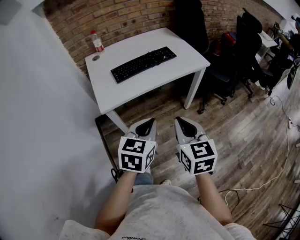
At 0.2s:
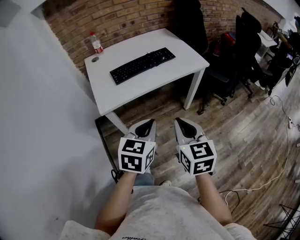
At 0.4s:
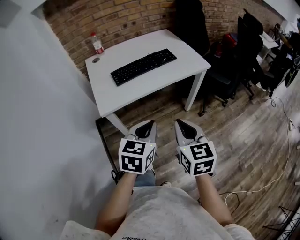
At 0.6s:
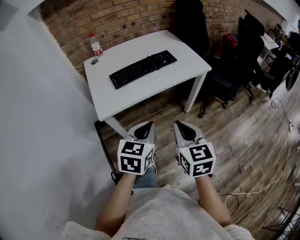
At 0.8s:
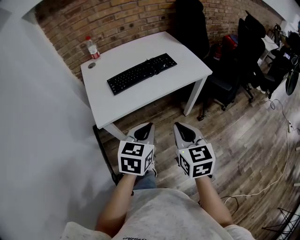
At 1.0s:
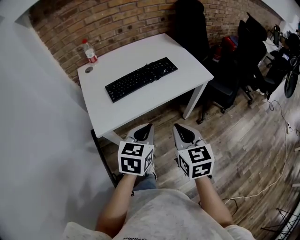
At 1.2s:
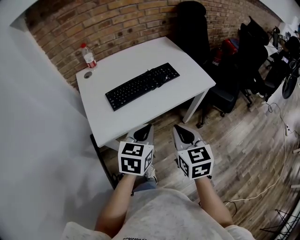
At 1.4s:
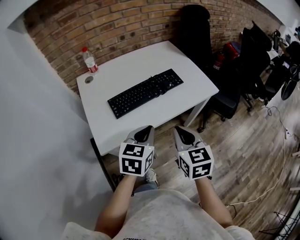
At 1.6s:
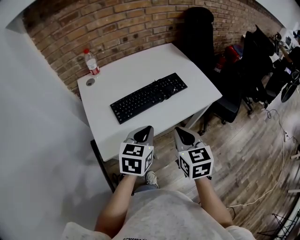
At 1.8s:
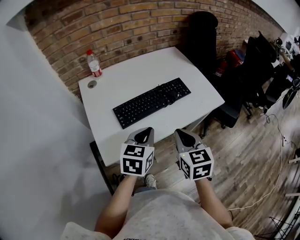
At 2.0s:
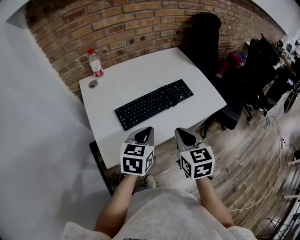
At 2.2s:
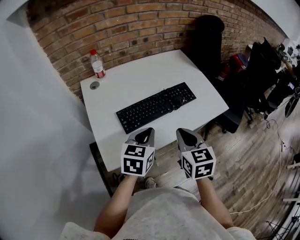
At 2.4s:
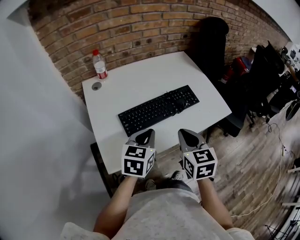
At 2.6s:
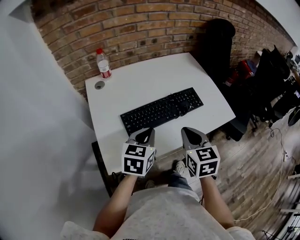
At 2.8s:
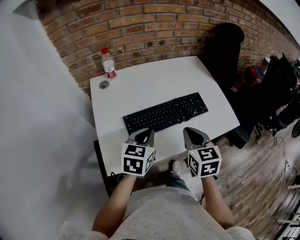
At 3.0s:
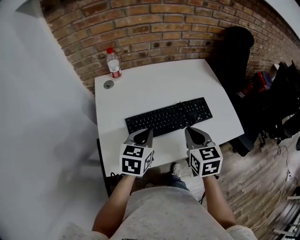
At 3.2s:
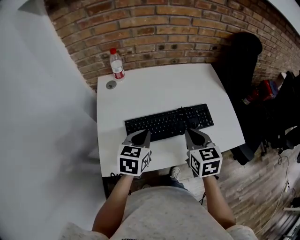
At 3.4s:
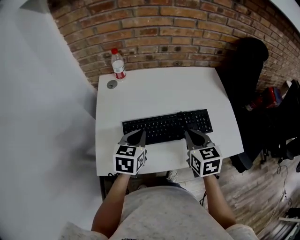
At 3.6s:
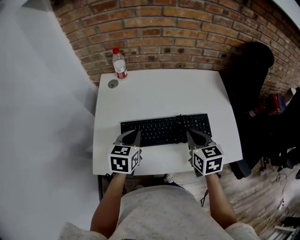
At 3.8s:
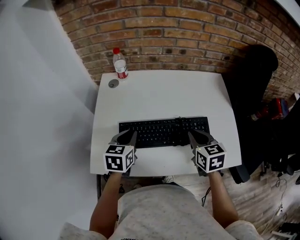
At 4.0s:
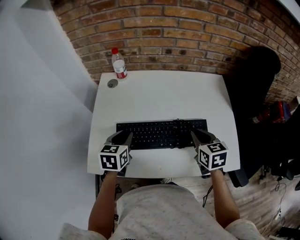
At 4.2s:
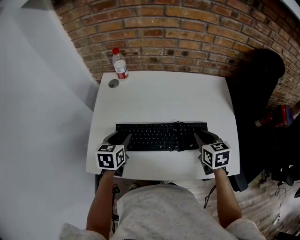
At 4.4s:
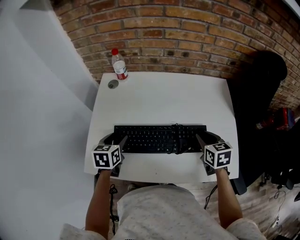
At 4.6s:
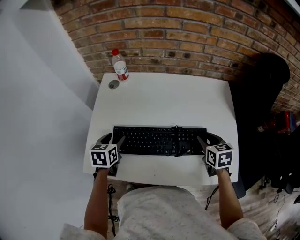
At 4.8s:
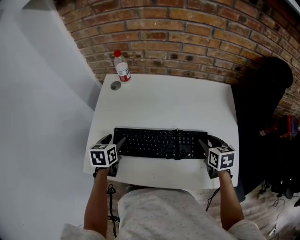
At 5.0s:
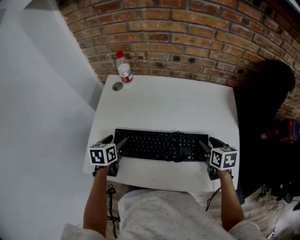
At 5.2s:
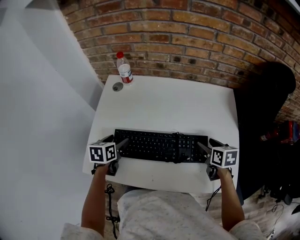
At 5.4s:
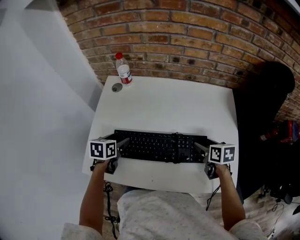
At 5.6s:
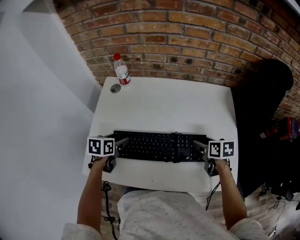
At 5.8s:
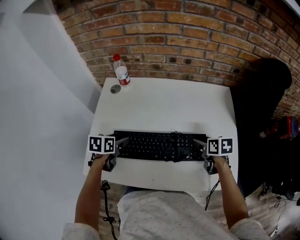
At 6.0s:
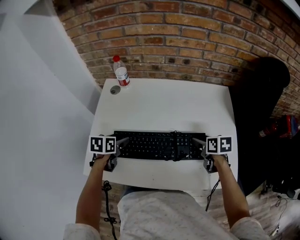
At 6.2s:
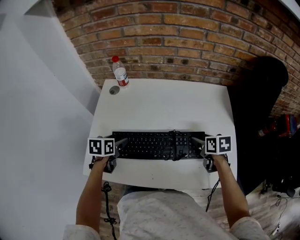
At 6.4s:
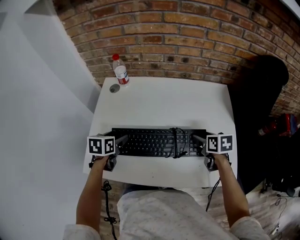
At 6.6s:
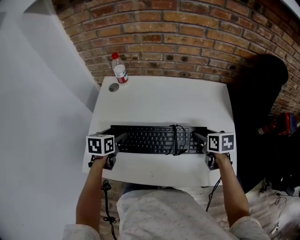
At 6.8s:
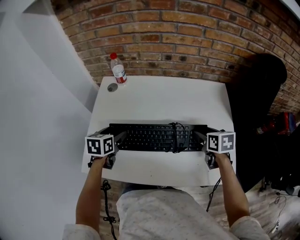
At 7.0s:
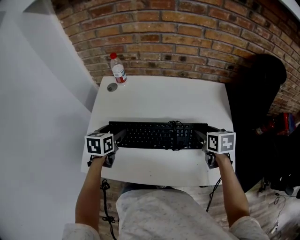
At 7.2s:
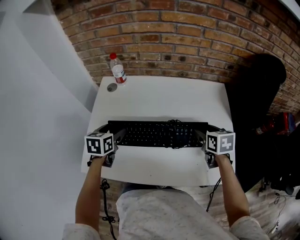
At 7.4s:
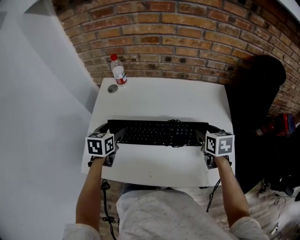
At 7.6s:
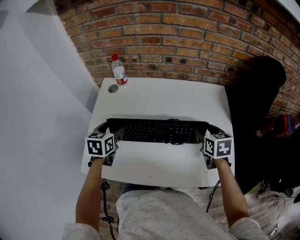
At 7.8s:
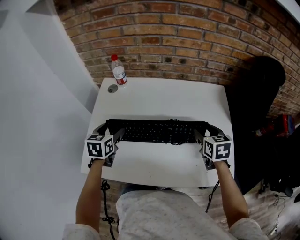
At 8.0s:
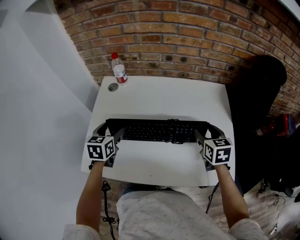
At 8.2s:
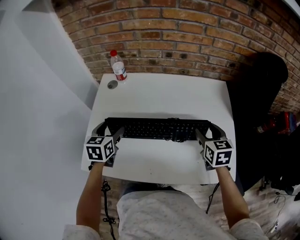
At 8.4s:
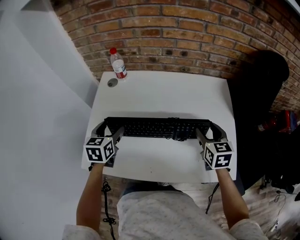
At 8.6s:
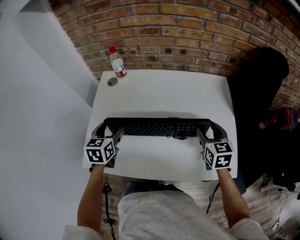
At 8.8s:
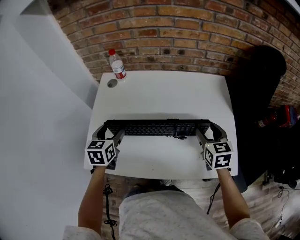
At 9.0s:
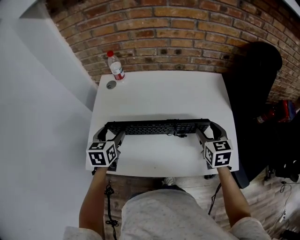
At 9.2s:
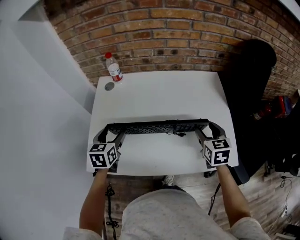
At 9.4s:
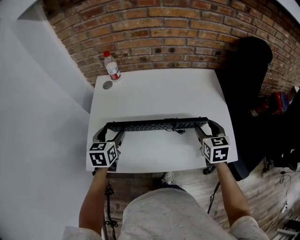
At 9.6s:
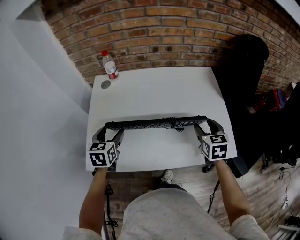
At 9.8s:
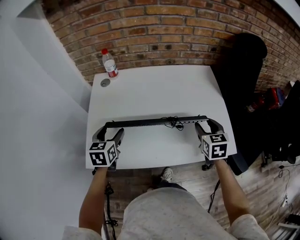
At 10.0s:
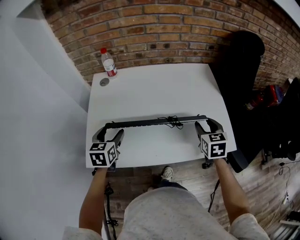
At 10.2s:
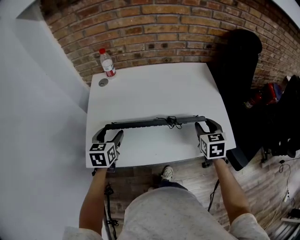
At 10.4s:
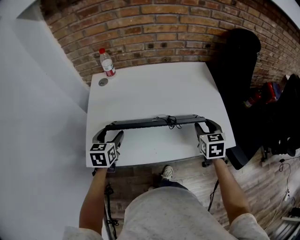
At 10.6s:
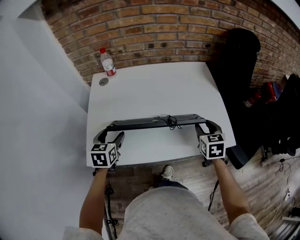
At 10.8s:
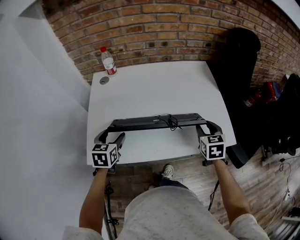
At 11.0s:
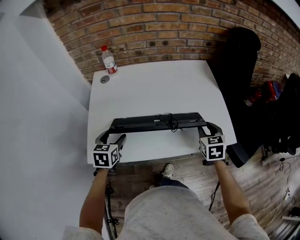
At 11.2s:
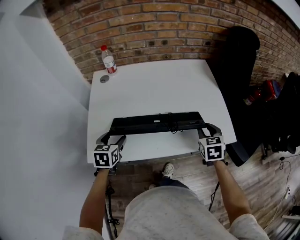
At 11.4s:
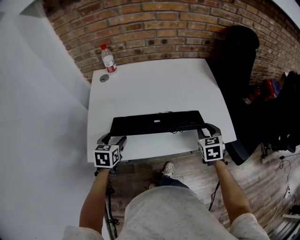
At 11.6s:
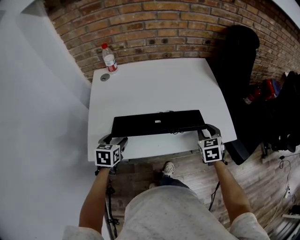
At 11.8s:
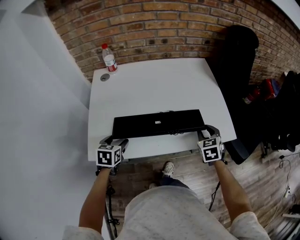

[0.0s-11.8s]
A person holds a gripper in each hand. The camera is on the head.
0.0s to 1.4s: The grippers both shift forward by roughly 20 cm.
1.4s to 3.0s: The right gripper shifts about 20 cm forward, while the left gripper goes some 20 cm forward and to the left.
3.0s to 4.4s: The right gripper travels to the right, forward and downward by roughly 25 cm, and rotates approximately 20 degrees. The left gripper heads downward, forward and to the left, covering approximately 10 cm, turns by about 30 degrees, and opens its fingers.
4.4s to 6.0s: The right gripper changes place by some 5 cm, rotates about 20 degrees, and opens its fingers.
6.0s to 7.4s: The grippers both shift upward by approximately 5 cm.
7.4s to 8.8s: There are only small adjustments of the grippers.
8.8s to 10.4s: Both grippers move backward, some 10 cm.
10.4s to 11.8s: The grippers both shift downward and backward by about 10 cm.

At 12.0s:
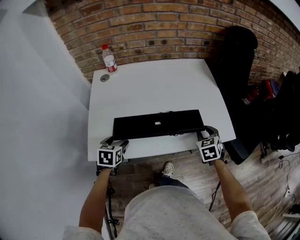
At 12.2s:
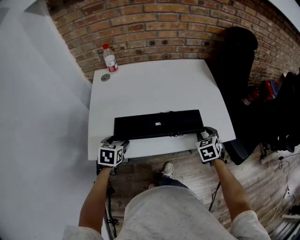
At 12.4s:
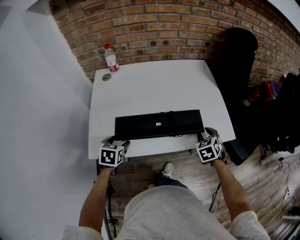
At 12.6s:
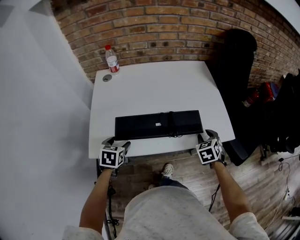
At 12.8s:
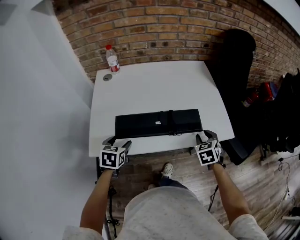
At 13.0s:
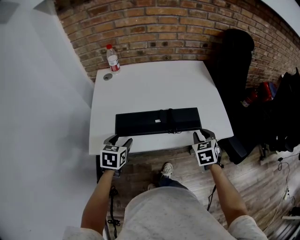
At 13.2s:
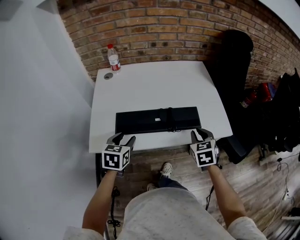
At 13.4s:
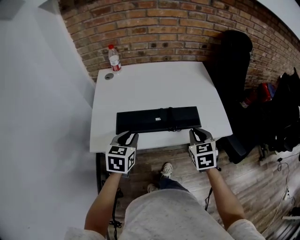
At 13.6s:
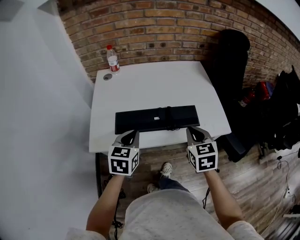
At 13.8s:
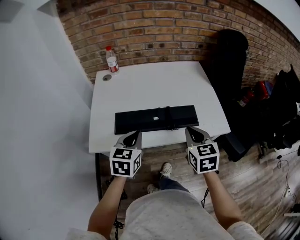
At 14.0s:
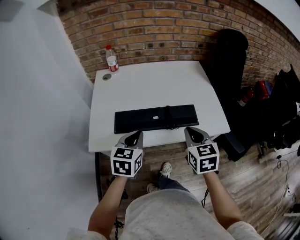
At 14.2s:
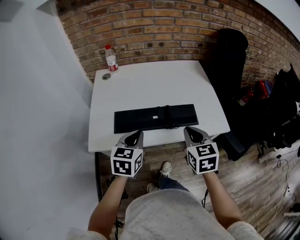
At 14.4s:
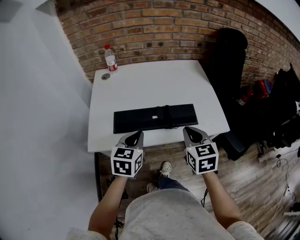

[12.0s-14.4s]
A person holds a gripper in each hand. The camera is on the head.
12.0s to 13.2s: The right gripper moves backward, some 5 cm; the left gripper is displaced upward and to the right by roughly 10 cm.
13.2s to 14.4s: The right gripper shifts some 10 cm upward and to the left. The left gripper heads to the right and upward, covering about 10 cm, and closes its fingers.

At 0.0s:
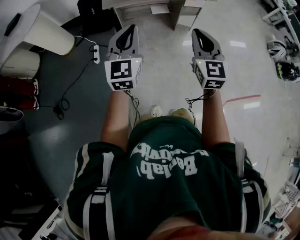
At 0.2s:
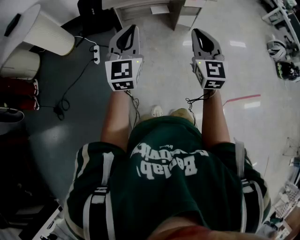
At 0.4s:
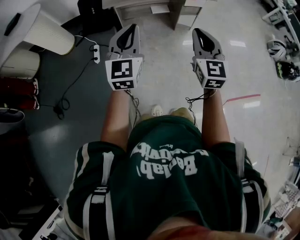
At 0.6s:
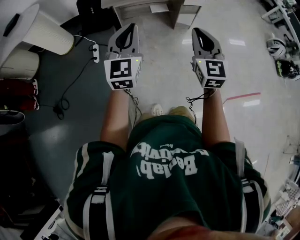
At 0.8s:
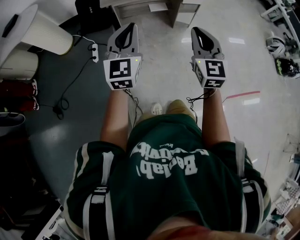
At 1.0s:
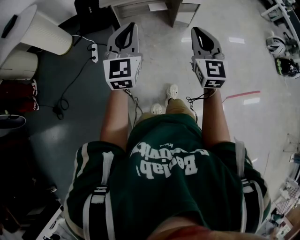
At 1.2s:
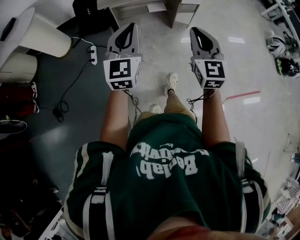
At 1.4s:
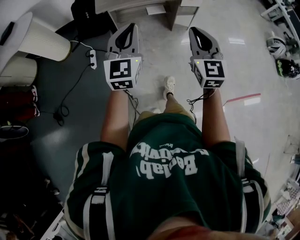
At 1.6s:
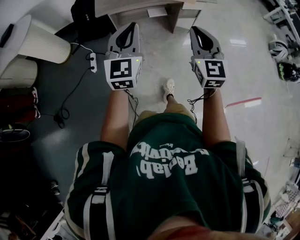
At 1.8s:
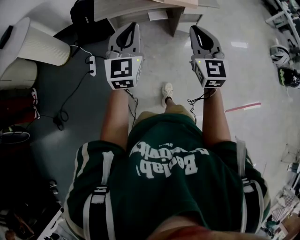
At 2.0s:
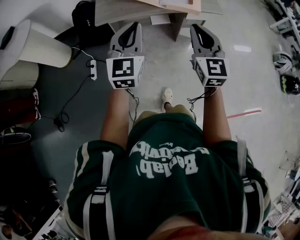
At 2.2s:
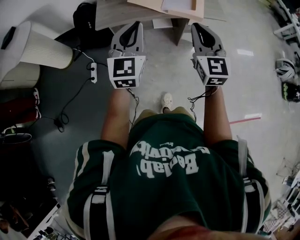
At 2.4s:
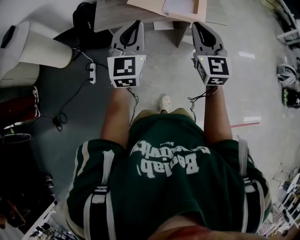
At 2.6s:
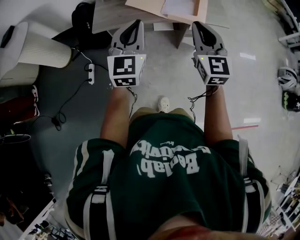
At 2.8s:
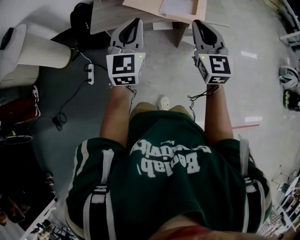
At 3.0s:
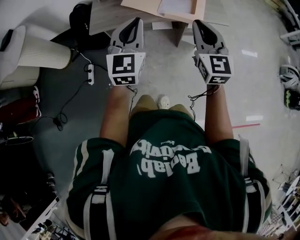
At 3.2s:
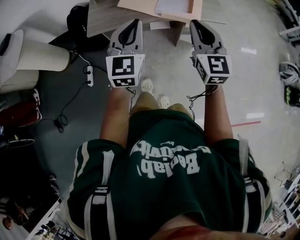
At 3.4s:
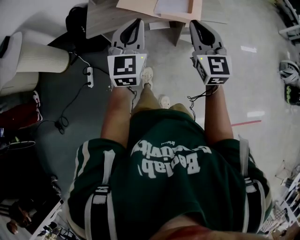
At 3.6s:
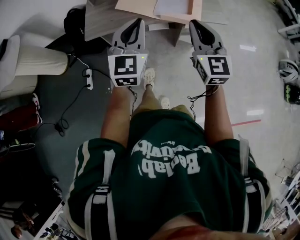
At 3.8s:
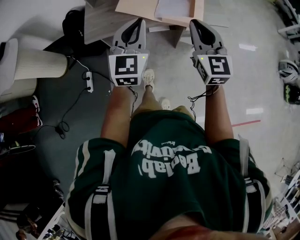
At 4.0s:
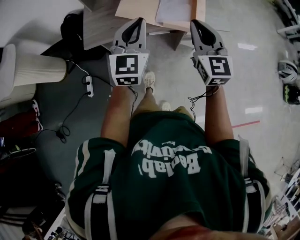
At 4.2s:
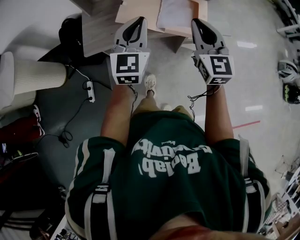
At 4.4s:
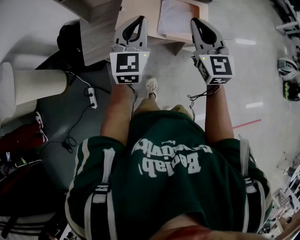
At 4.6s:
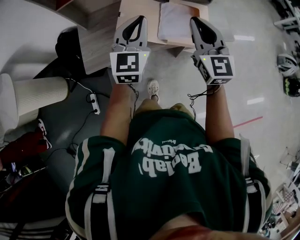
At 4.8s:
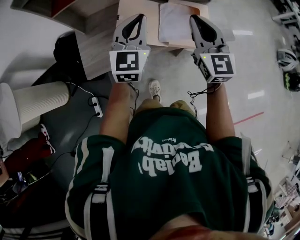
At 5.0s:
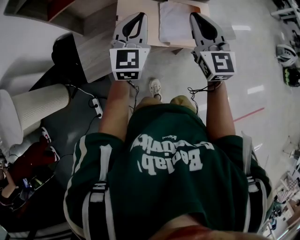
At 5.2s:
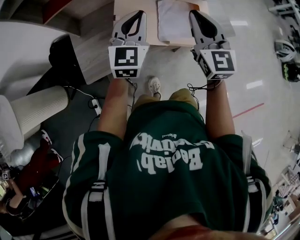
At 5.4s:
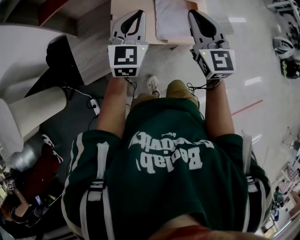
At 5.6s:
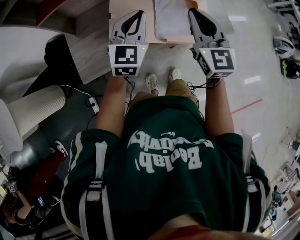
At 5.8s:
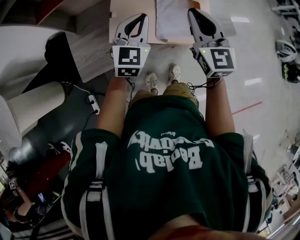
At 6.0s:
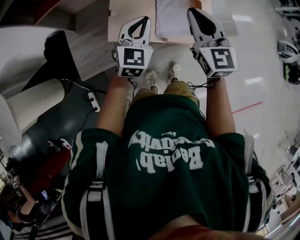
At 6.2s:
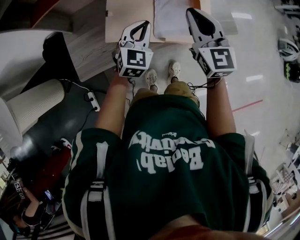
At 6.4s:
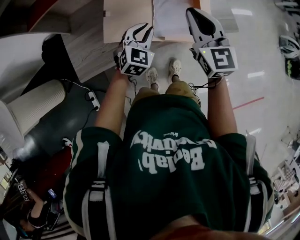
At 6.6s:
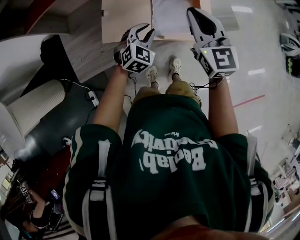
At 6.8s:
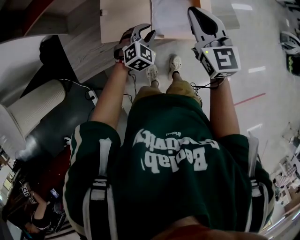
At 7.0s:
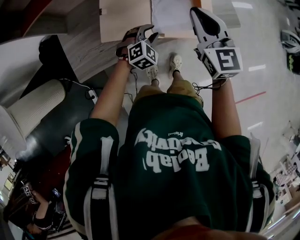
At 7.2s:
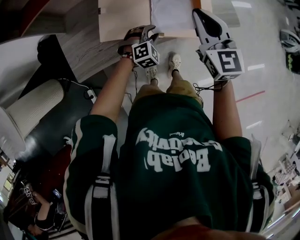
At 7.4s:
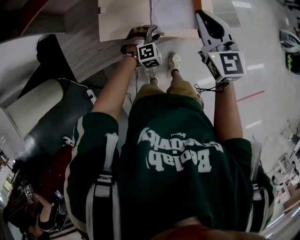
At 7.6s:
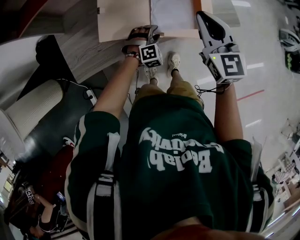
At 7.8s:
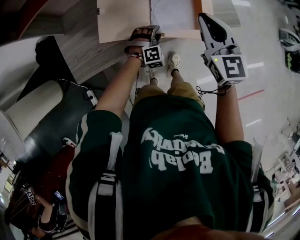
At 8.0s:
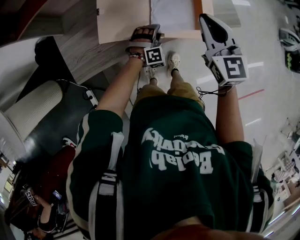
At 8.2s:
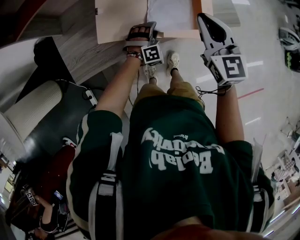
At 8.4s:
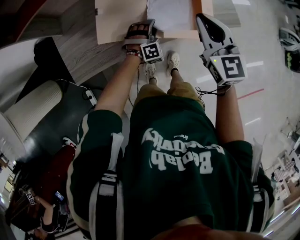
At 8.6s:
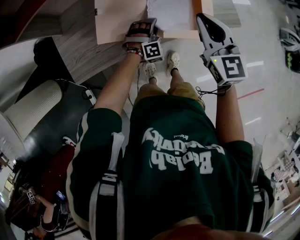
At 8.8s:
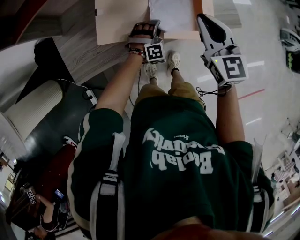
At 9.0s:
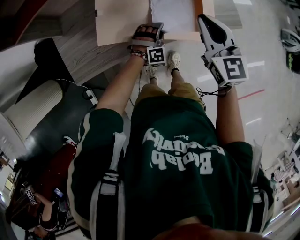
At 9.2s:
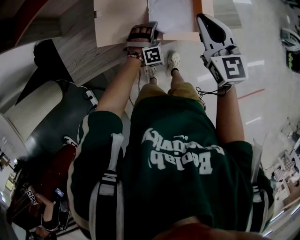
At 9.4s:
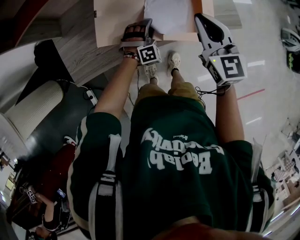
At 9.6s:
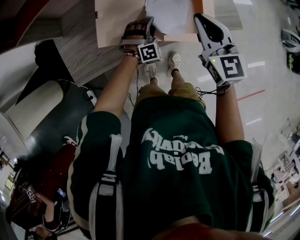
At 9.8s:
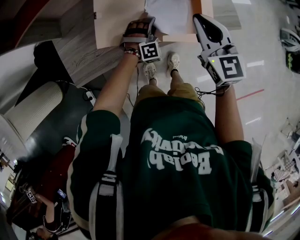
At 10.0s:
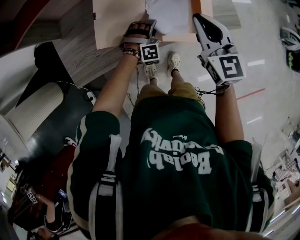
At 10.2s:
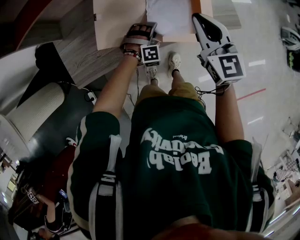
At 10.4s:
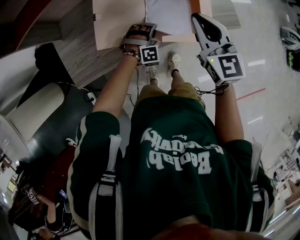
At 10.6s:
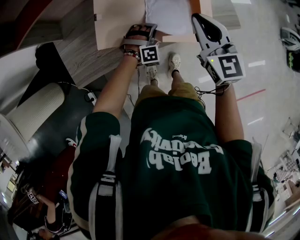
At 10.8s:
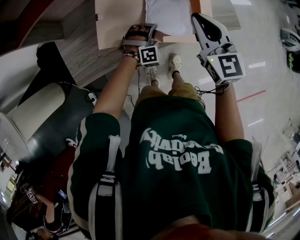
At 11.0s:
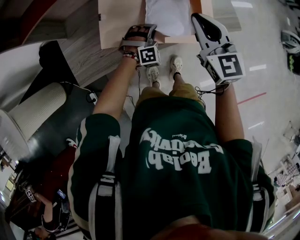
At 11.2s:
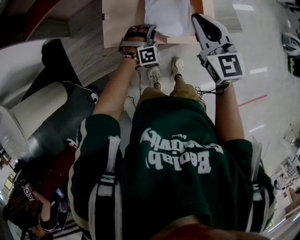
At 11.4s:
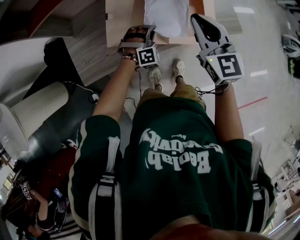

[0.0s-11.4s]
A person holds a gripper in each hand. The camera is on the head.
0.0s to 1.4s: The grippers both shift forward by roughly 5 cm.
1.4s to 2.8s: The two grippers go about 40 cm forward.
2.8s to 4.2s: The two grippers go roughly 20 cm forward.
4.2s to 5.6s: The grippers both shift forward by about 20 cm.
5.6s to 7.2s: The right gripper goes roughly 10 cm downward and forward. Meanwhile the left gripper heads downward, covering some 30 cm, points its fingers some 40 degrees further downward, and opens up.
7.2s to 8.6s: The left gripper shifts by about 5 cm, and swivels approximately 20 degrees.
8.6s to 10.0s: There are only small adjustments of the grippers.
10.0s to 11.4s: The right gripper ends up some 5 cm from where it was; the left gripper moves upward, about 5 cm, and closes.
